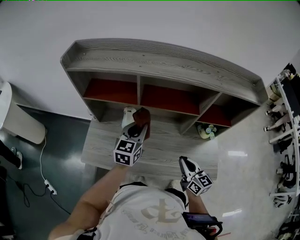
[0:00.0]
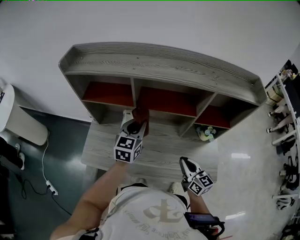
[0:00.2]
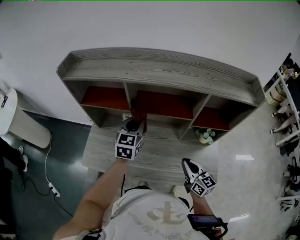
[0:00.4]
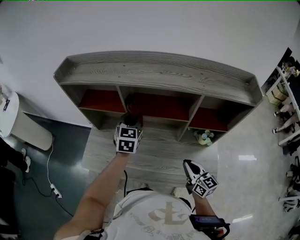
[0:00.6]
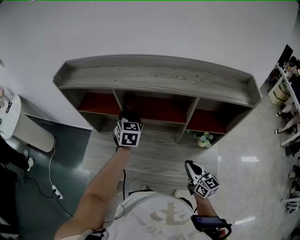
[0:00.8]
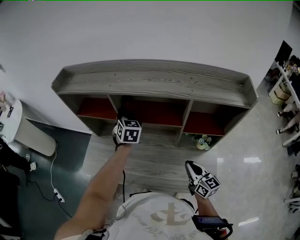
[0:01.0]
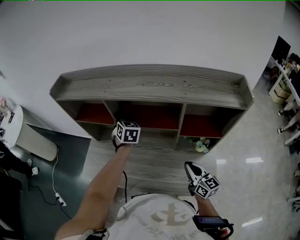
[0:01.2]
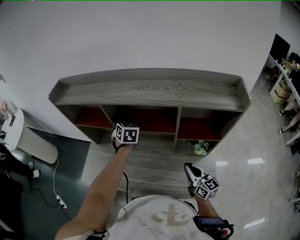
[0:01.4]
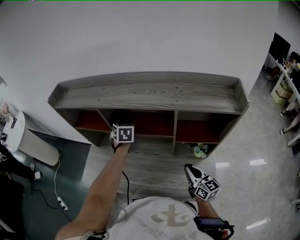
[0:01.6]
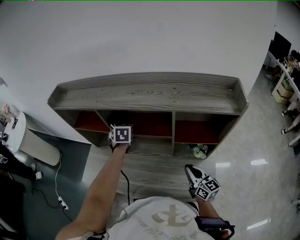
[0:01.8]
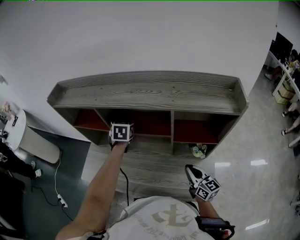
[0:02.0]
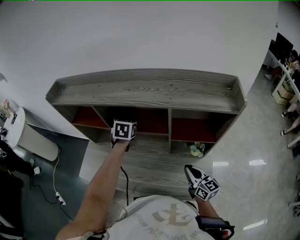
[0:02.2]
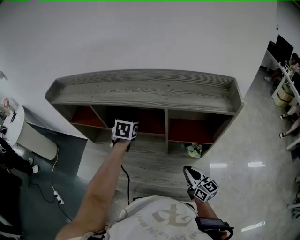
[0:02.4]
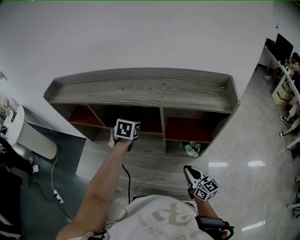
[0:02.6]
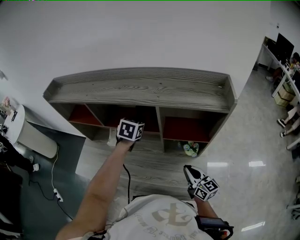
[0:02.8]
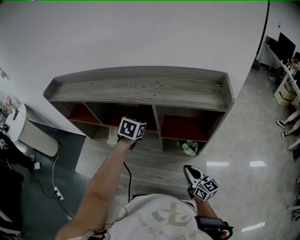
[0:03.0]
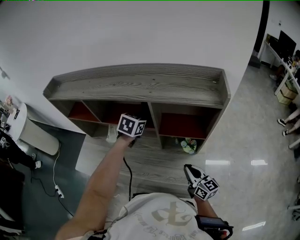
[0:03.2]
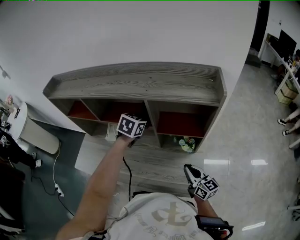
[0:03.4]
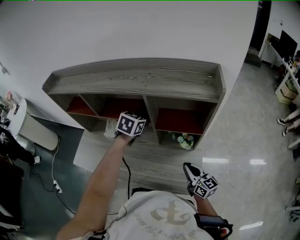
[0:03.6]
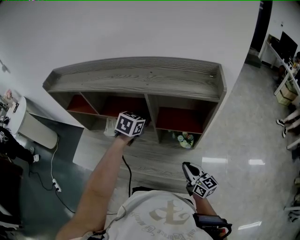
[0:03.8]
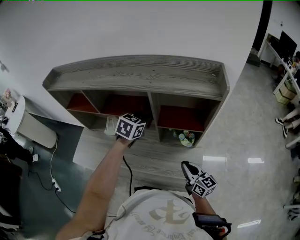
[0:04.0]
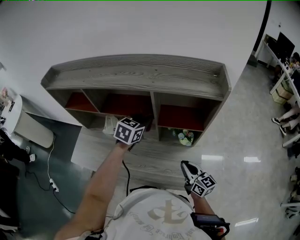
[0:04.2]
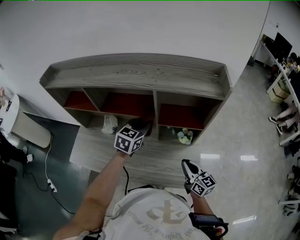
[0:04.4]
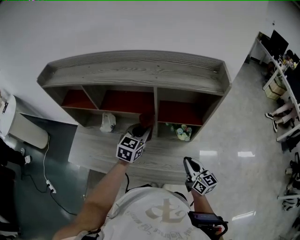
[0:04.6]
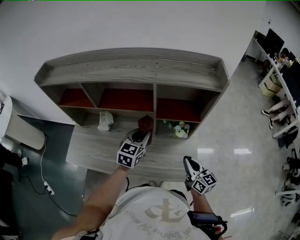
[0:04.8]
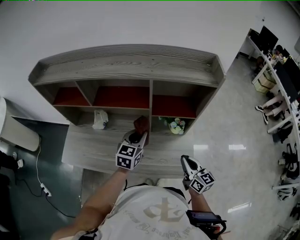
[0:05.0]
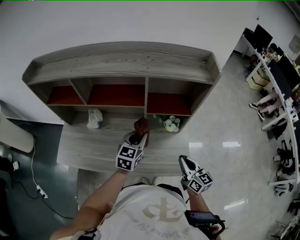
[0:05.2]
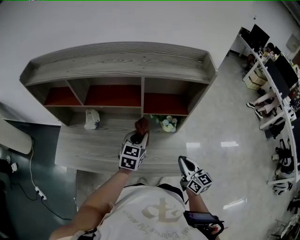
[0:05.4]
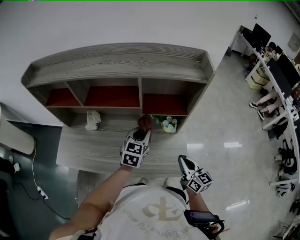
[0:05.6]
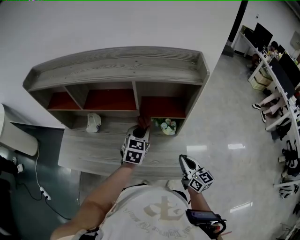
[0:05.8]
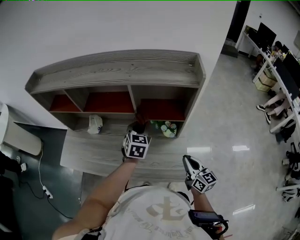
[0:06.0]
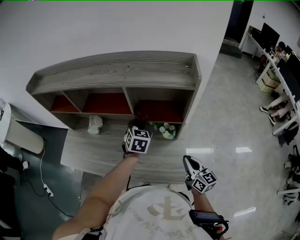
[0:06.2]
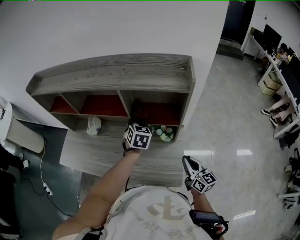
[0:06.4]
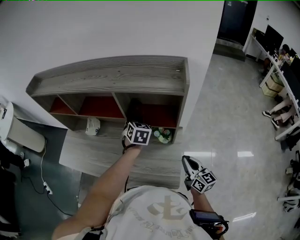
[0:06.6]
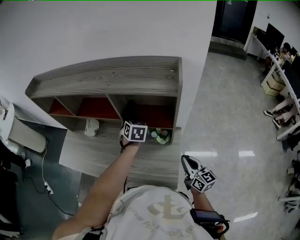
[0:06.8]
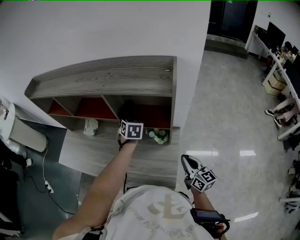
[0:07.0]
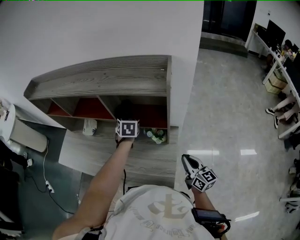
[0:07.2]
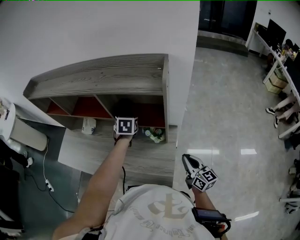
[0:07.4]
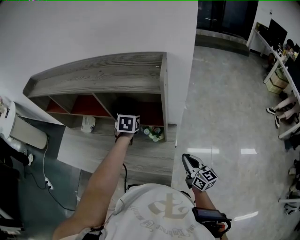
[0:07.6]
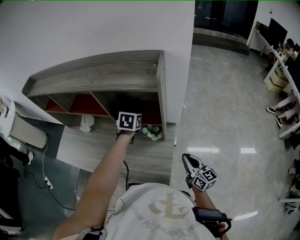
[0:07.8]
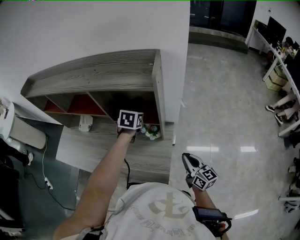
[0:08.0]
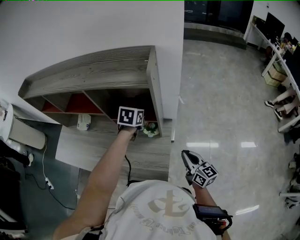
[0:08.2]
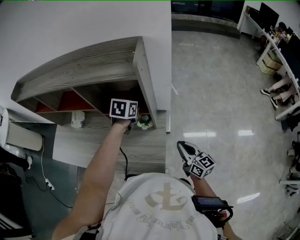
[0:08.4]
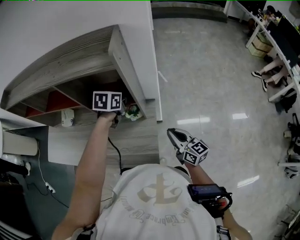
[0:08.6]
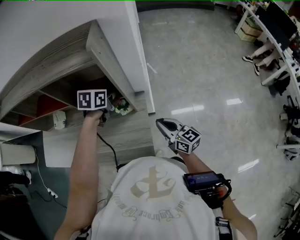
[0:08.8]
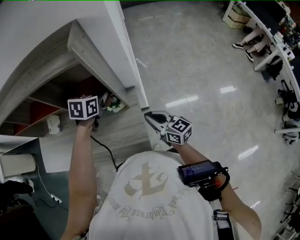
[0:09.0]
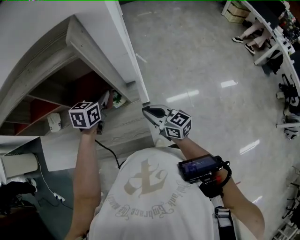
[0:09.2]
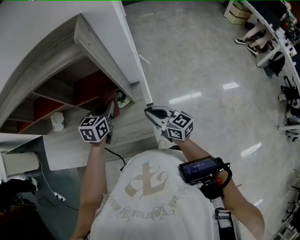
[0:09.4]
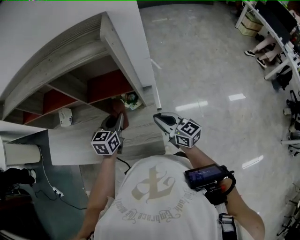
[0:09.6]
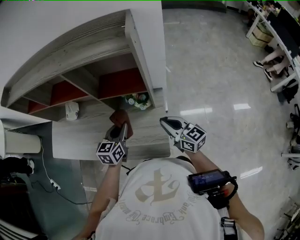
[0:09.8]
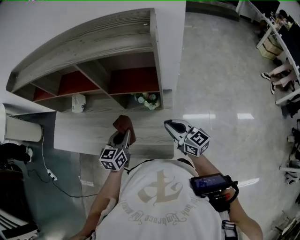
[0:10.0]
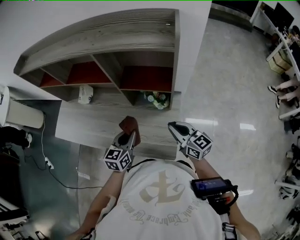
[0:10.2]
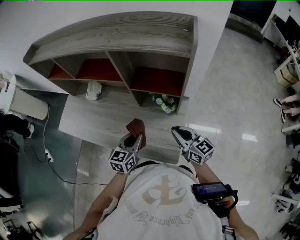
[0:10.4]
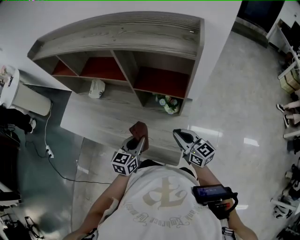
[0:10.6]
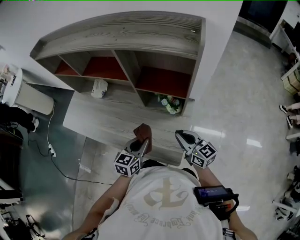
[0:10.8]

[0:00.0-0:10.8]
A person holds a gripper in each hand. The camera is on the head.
0:00.0 to 0:01.6: The right gripper moves to the right, approximately 15 cm. Meanwhile the left gripper heads forward and to the right, covering roughly 15 cm, and rotates approximately 40 degrees.
0:01.6 to 0:03.0: The left gripper shifts some 20 cm to the right and backward, and turns by about 30 degrees, while the right gripper is displaced to the right by some 5 cm.
0:03.0 to 0:04.6: The left gripper goes roughly 15 cm backward.
0:04.6 to 0:06.2: The two grippers go roughly 10 cm to the right.
0:06.2 to 0:07.8: Both grippers move to the right, approximately 10 cm.
0:07.8 to 0:09.2: The left gripper is displaced to the right and backward by roughly 10 cm, and turns by roughly 20 degrees.
0:09.2 to 0:10.8: The left gripper heads backward, to the left and downward, covering approximately 25 cm, and turns by roughly 20 degrees, while the right gripper travels to the left by some 10 cm.

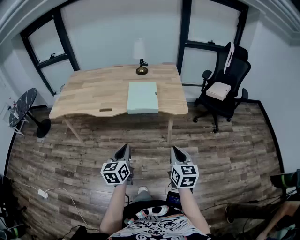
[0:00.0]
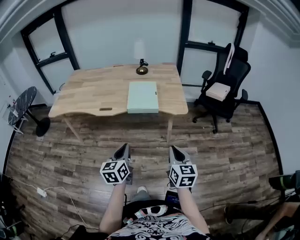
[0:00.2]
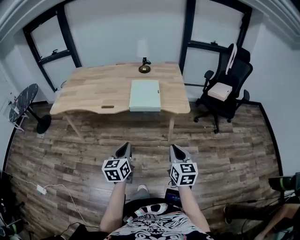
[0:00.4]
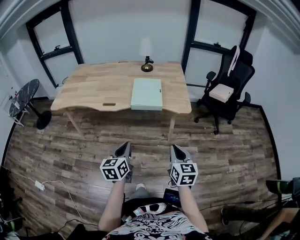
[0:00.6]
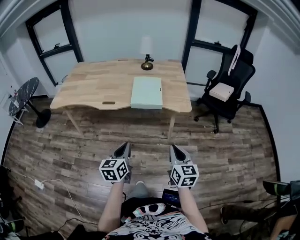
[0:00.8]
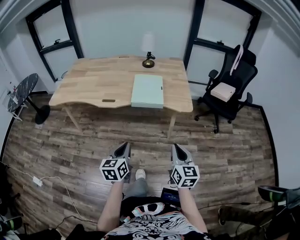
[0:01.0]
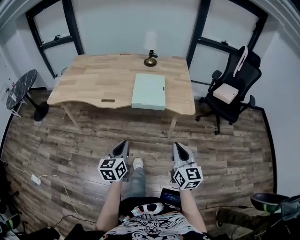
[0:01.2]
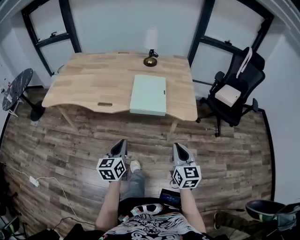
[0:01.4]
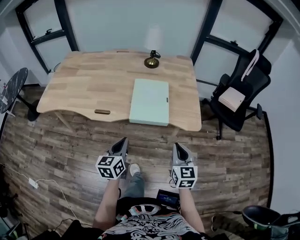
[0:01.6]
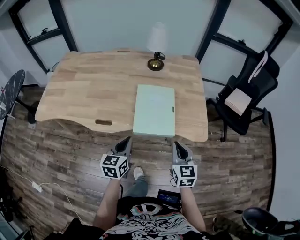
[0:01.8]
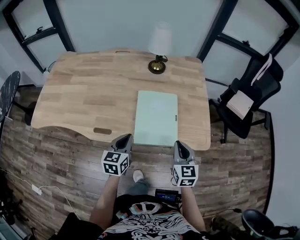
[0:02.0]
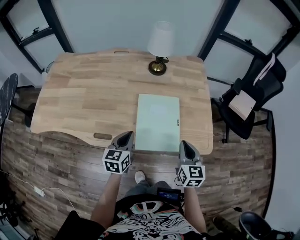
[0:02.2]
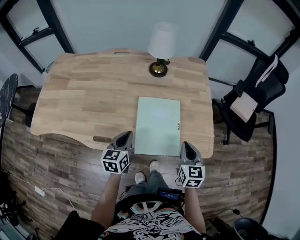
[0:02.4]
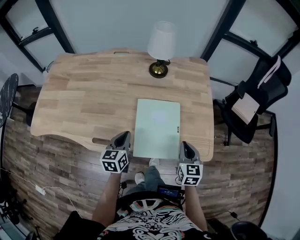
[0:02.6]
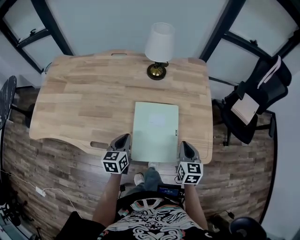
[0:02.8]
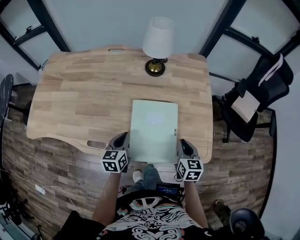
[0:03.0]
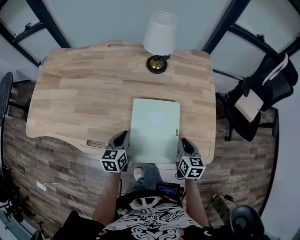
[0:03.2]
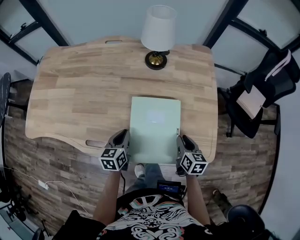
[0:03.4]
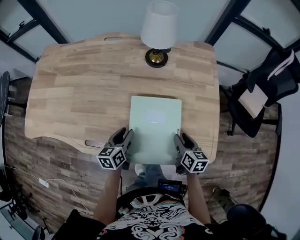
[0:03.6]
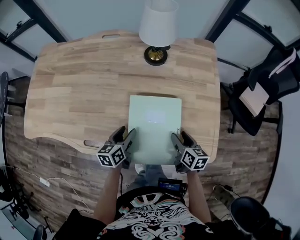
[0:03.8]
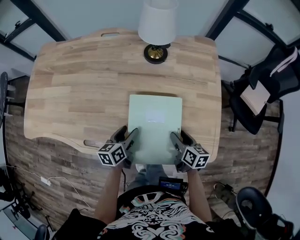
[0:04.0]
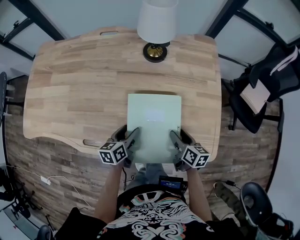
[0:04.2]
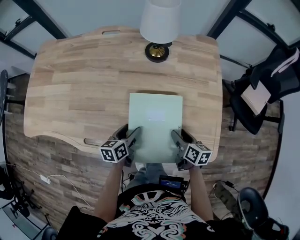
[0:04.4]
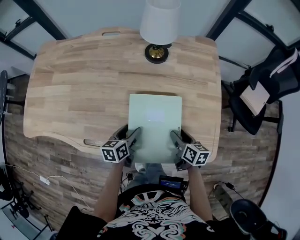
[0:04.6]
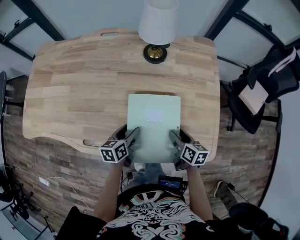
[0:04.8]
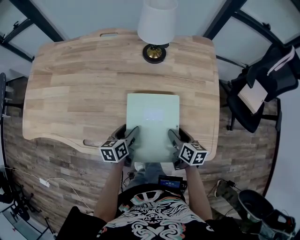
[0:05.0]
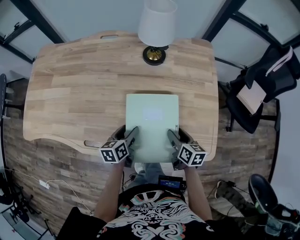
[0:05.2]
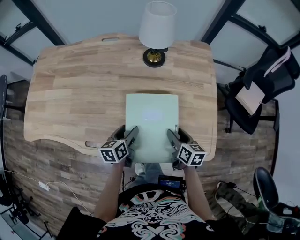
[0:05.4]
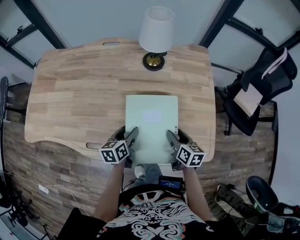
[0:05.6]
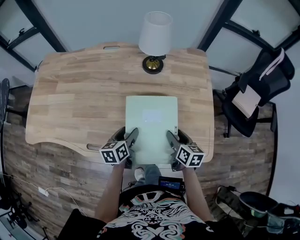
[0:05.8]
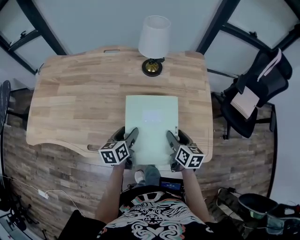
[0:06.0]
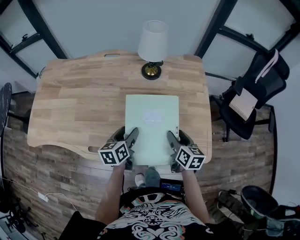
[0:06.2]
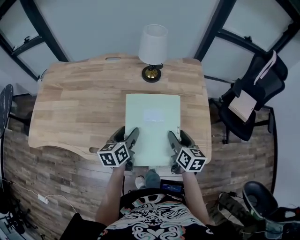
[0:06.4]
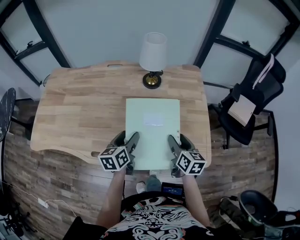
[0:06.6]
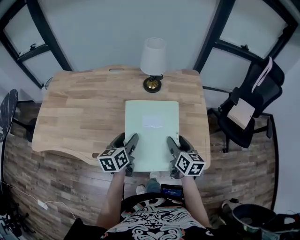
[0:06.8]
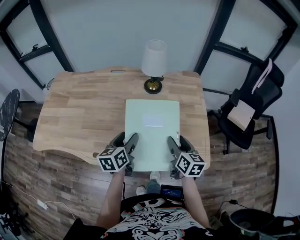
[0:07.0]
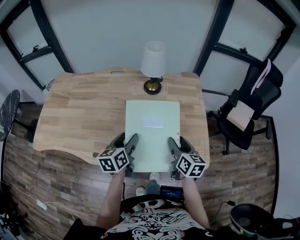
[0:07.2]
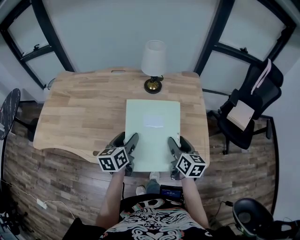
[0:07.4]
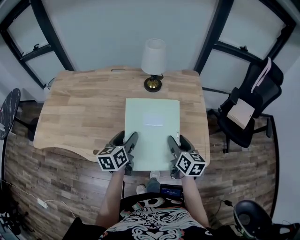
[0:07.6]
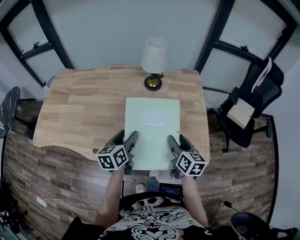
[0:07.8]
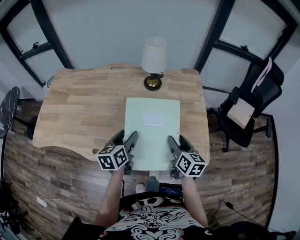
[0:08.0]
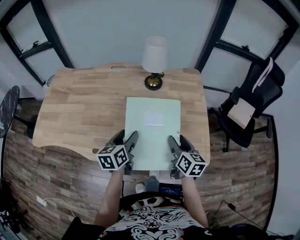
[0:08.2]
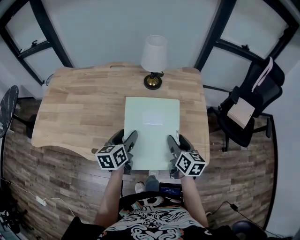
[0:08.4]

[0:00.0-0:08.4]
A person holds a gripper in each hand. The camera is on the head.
0:00.0 to 0:01.4: The two grippers go approximately 10 cm forward.
0:01.4 to 0:02.8: The two grippers go roughly 35 cm forward.
0:02.8 to 0:04.2: The right gripper shifts roughly 10 cm downward and forward, rotates about 40 degrees, and opens its fingers, while the left gripper travels downward by roughly 10 cm, and opens its fingers.
0:04.2 to 0:05.6: The grippers move only a little.
0:05.6 to 0:07.0: Both grippers travel together upward, roughly 15 cm.
0:07.0 to 0:08.4: The grippers stay close to where they were, moving slightly.

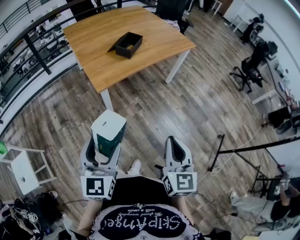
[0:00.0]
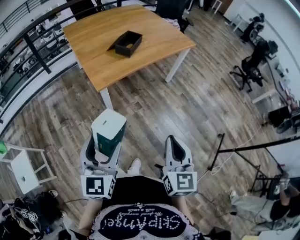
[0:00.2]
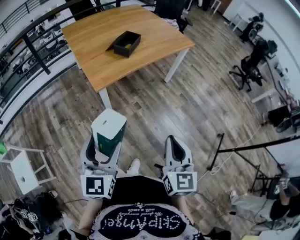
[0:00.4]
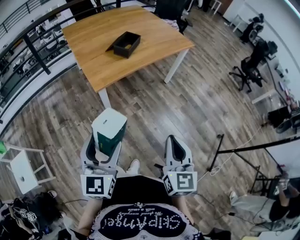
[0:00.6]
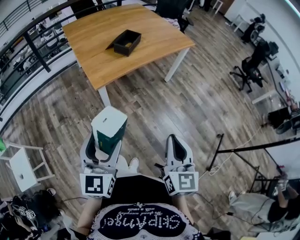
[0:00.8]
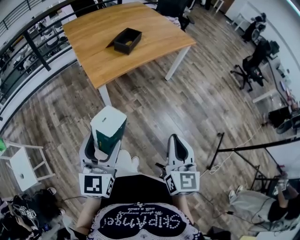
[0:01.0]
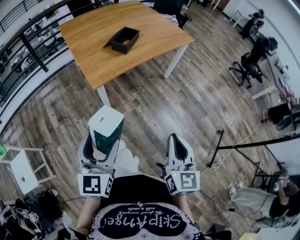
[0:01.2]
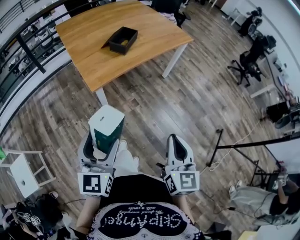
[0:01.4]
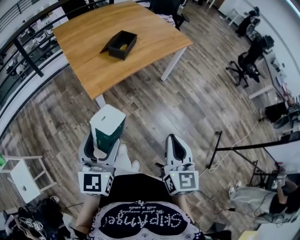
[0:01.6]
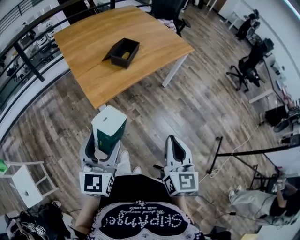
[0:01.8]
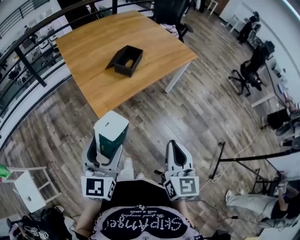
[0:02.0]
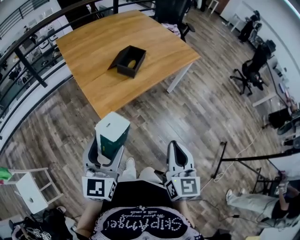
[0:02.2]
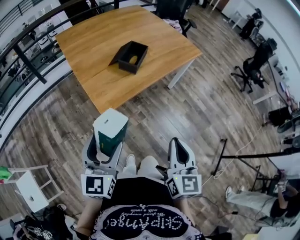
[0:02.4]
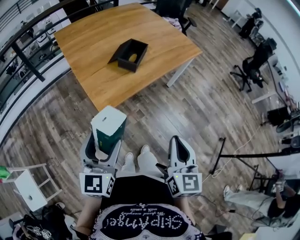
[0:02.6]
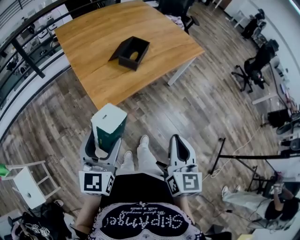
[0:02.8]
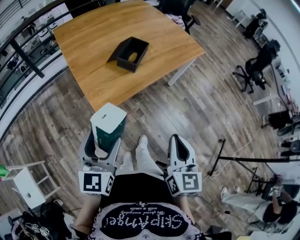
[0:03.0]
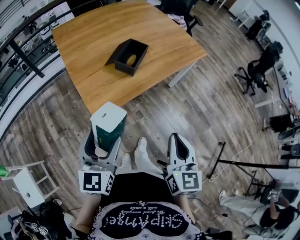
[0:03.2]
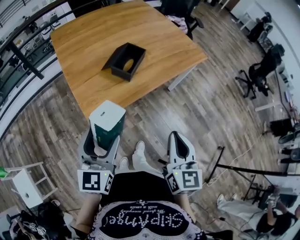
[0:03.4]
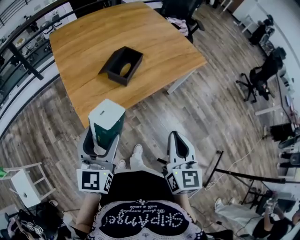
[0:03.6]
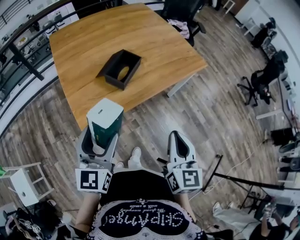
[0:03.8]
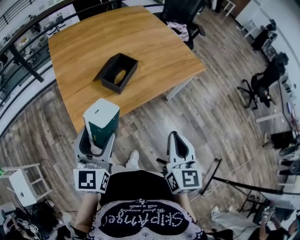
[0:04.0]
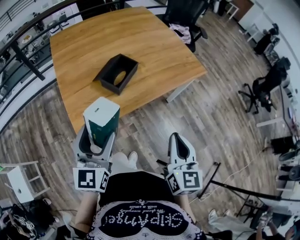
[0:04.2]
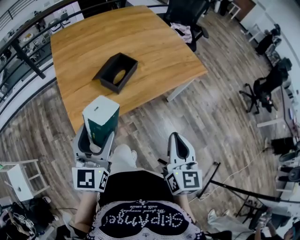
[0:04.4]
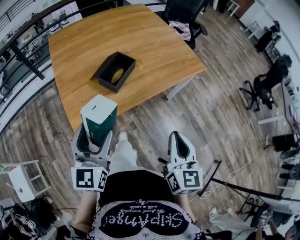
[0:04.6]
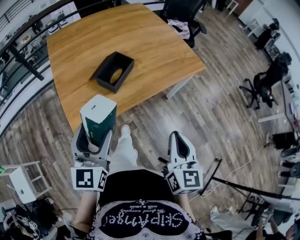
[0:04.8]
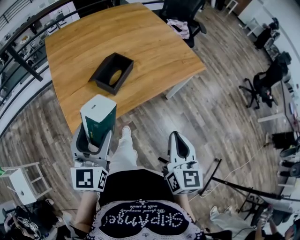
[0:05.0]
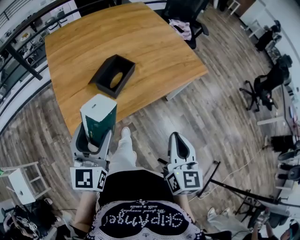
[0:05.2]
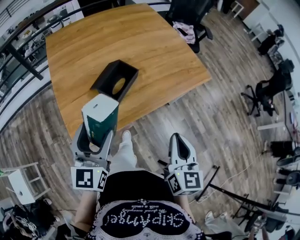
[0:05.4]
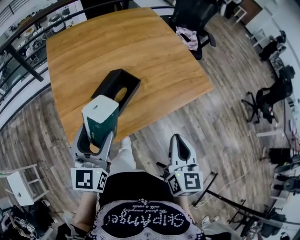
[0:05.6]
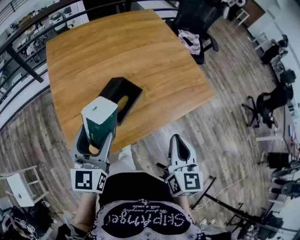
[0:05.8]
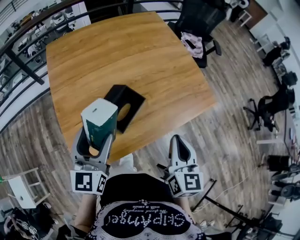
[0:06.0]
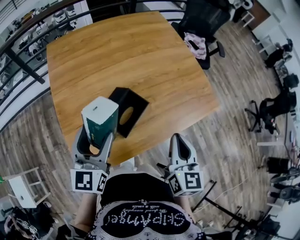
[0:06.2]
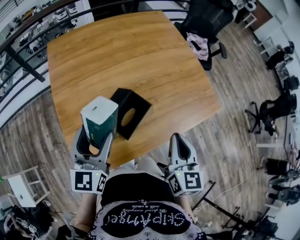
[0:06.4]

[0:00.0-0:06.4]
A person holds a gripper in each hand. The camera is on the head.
0:00.0 to 0:01.6: Both grippers move forward, about 5 cm.
0:01.6 to 0:03.2: Both grippers move forward, some 15 cm.
0:03.2 to 0:04.8: Both grippers travel together forward and to the right, about 15 cm.
0:04.8 to 0:06.4: Both grippers move forward, roughly 25 cm.
